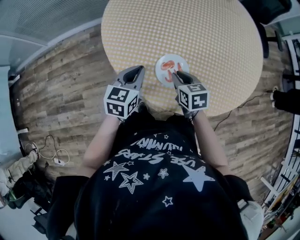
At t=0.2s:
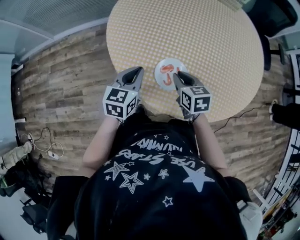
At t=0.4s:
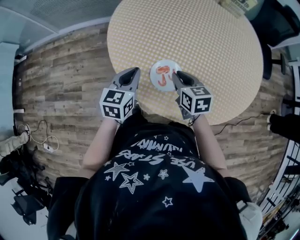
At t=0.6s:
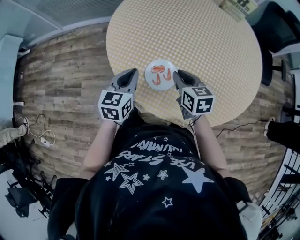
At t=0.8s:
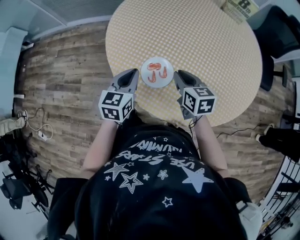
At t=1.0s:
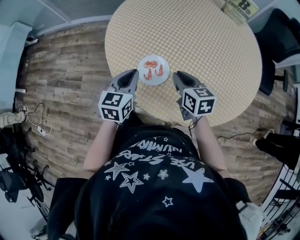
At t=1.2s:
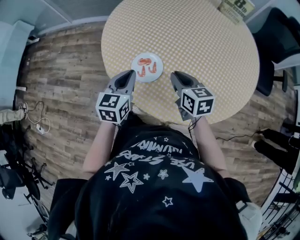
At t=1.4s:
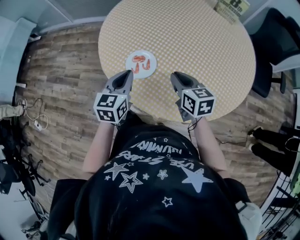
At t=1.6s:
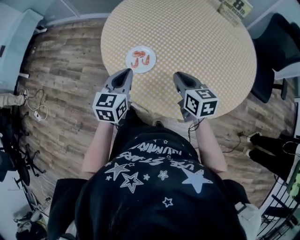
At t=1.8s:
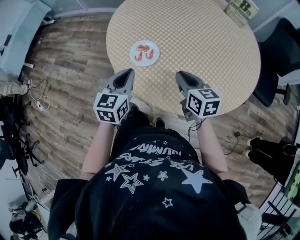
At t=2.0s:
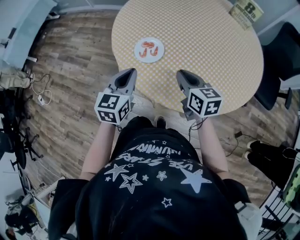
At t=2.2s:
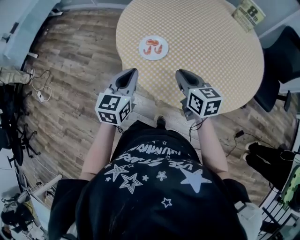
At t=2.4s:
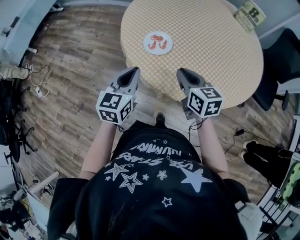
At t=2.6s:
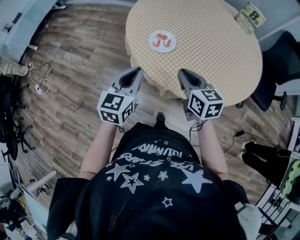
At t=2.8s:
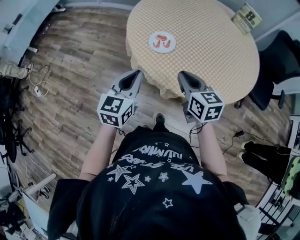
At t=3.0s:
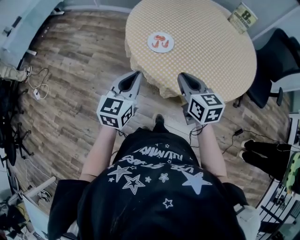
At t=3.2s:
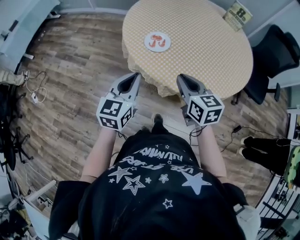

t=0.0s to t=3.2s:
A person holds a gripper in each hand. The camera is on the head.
t=0.0s to t=1.6s: The left gripper moves some 20 cm, and turns by about 30 degrees, while the right gripper moves roughly 20 cm, and rotates approximately 30 degrees.
t=1.6s to t=3.2s: The two grippers go about 15 cm backward and to the left.

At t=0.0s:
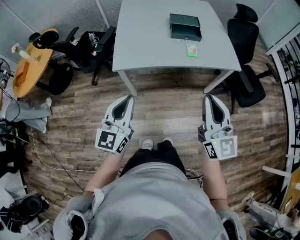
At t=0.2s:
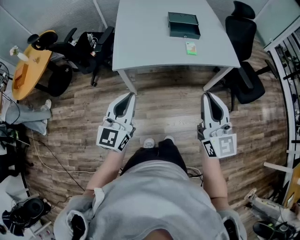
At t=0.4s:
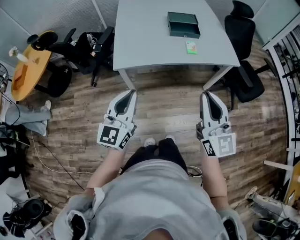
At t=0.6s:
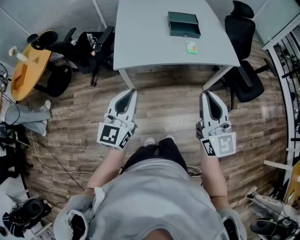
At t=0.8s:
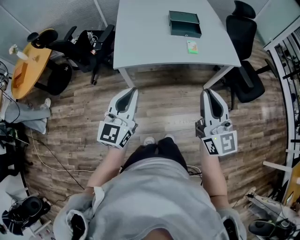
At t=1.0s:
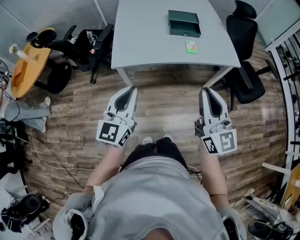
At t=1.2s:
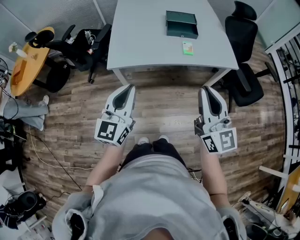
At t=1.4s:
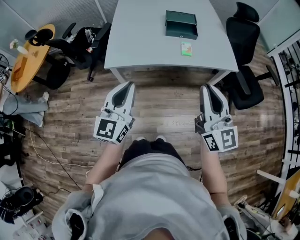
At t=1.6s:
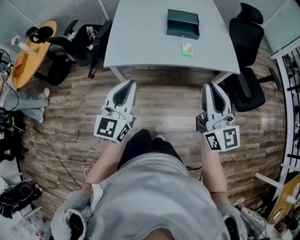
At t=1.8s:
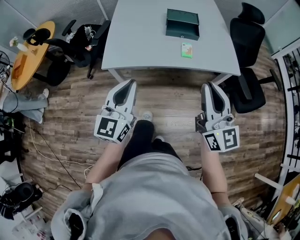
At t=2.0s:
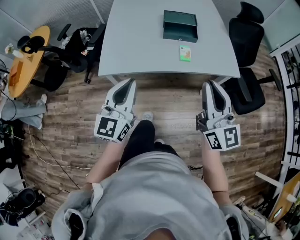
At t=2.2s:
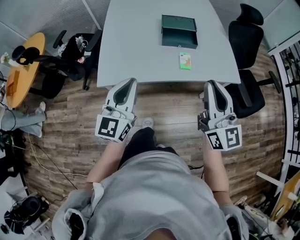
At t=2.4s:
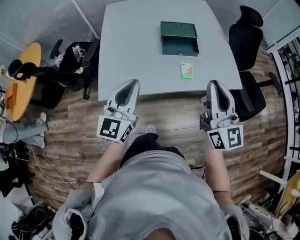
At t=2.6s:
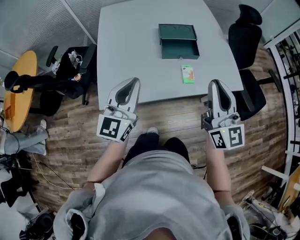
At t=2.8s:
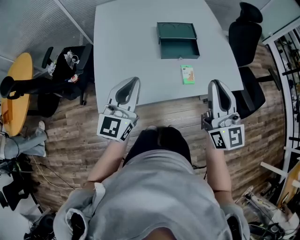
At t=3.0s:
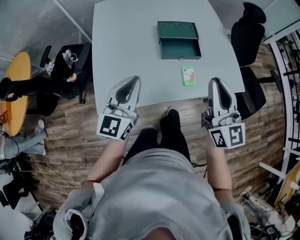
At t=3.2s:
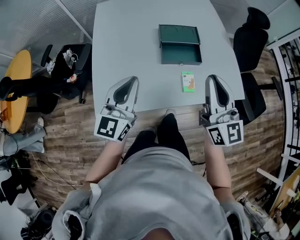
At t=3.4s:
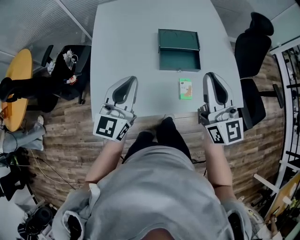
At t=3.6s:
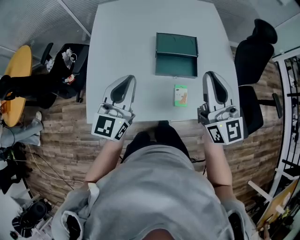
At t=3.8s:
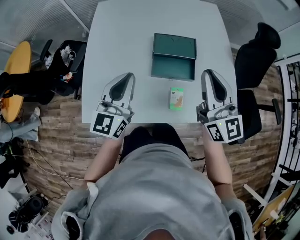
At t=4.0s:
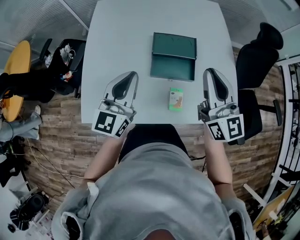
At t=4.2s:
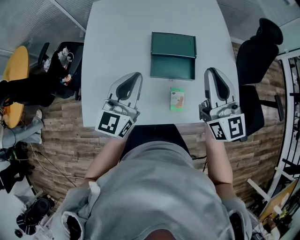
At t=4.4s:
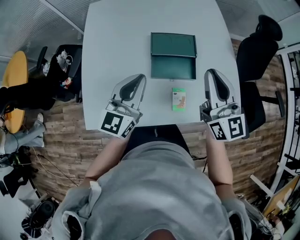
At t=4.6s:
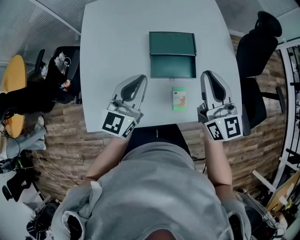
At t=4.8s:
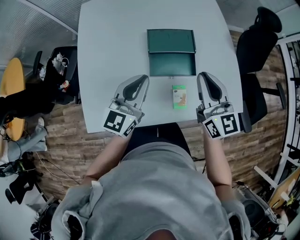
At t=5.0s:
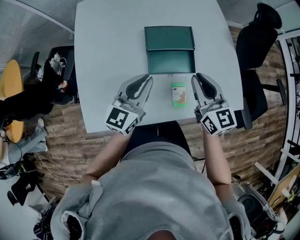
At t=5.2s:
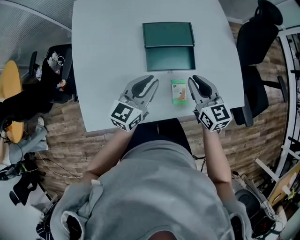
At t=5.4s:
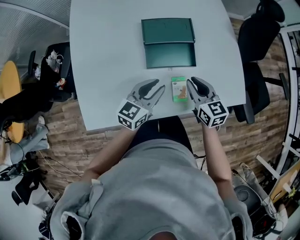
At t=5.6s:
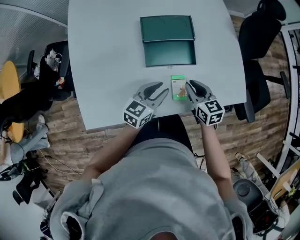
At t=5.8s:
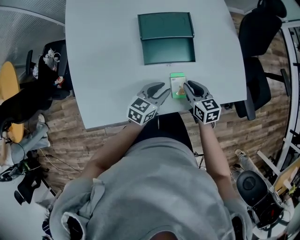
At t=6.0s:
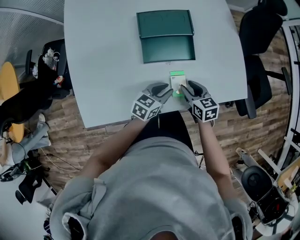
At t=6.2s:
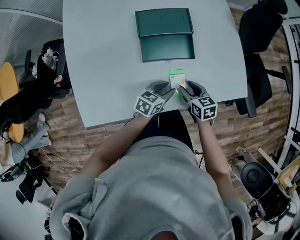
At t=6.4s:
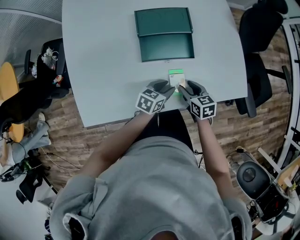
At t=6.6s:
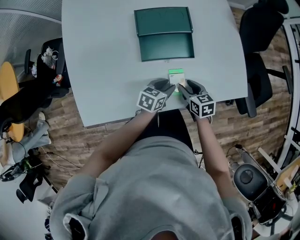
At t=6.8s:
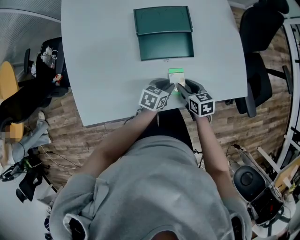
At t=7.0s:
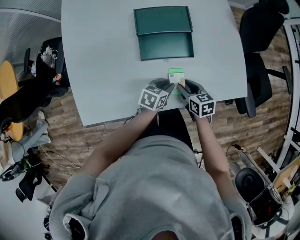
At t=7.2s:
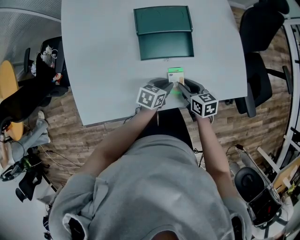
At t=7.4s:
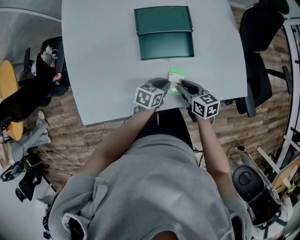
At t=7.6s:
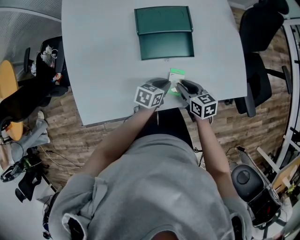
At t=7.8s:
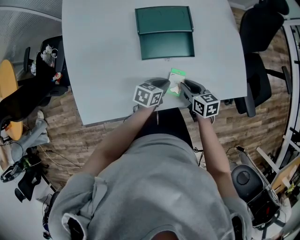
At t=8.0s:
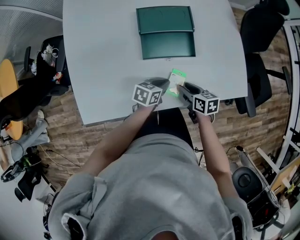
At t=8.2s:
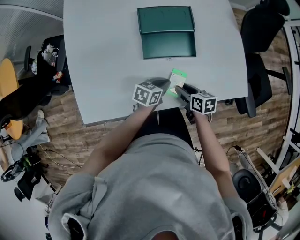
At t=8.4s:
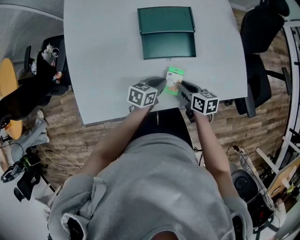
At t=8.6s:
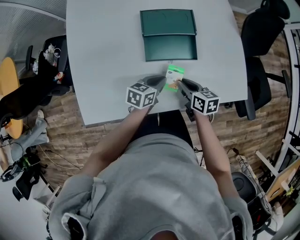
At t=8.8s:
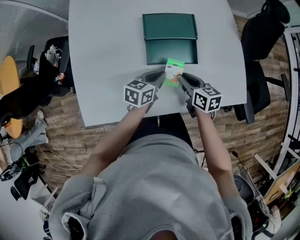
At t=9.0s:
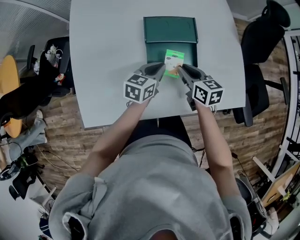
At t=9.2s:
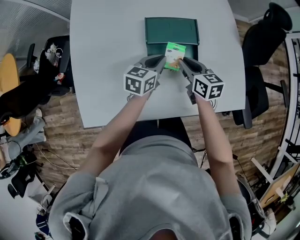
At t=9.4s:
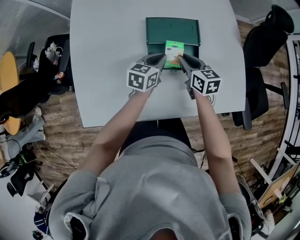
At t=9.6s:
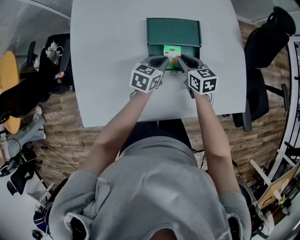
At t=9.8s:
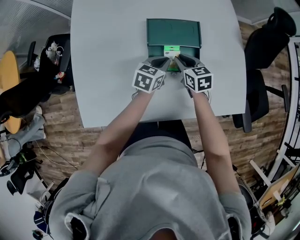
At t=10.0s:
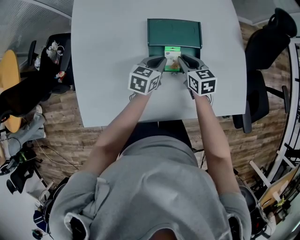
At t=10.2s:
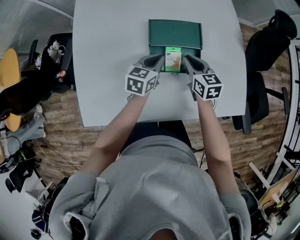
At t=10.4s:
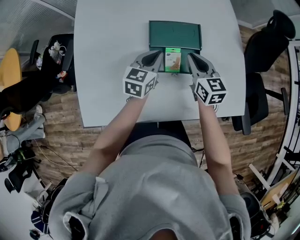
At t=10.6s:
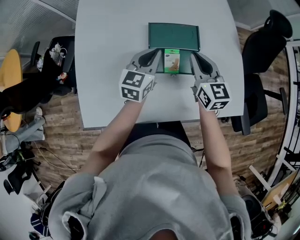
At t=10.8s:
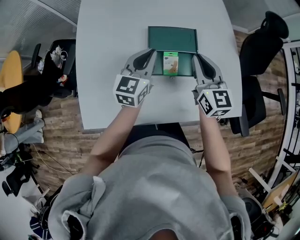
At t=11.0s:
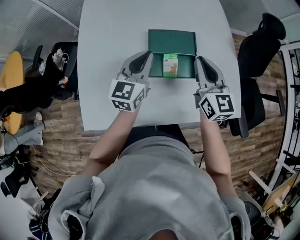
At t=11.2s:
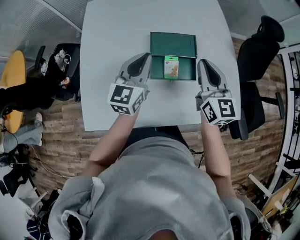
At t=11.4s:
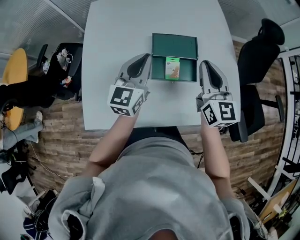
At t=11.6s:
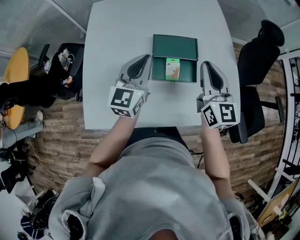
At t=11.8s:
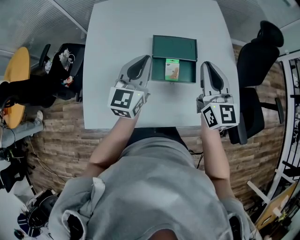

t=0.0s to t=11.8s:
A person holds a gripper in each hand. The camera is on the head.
t=0.0s to t=1.4s: Both grippers move to the right, approximately 5 cm.
t=1.4s to t=3.0s: Both grippers travel together forward, approximately 40 cm.
t=3.0s to t=4.4s: The right gripper shifts roughly 25 cm forward. The left gripper heads forward and to the right, covering about 20 cm.
t=4.4s to t=6.0s: The right gripper heads downward, covering approximately 35 cm, tilts its fingers some 50 degrees downward, and opens its fingers, while the left gripper goes about 30 cm downward and to the right, changes its angle by some 50 degrees, and opens.
t=6.0s to t=7.4s: The grippers move only a little.
t=7.4s to t=8.8s: The left gripper travels upward, forward and to the left by about 10 cm; the right gripper heads forward, covering roughly 5 cm.
t=8.8s to t=10.4s: Both grippers travel together forward and upward, roughly 15 cm. The right gripper changes its angle by about 30 degrees, while the left gripper swivels approximately 20 degrees.
t=10.4s to t=11.8s: Both grippers travel together upward and backward, roughly 20 cm. The left gripper swivels roughly 30 degrees, while the right gripper swivels approximately 30 degrees.

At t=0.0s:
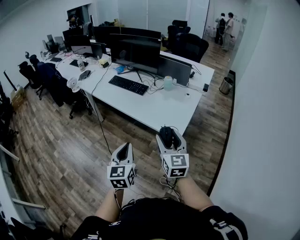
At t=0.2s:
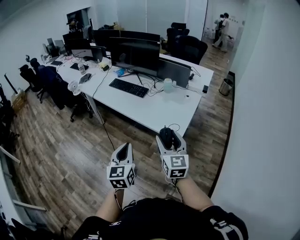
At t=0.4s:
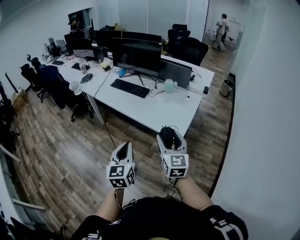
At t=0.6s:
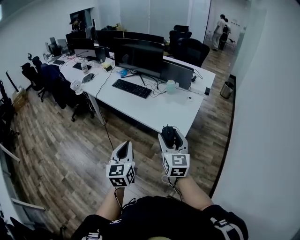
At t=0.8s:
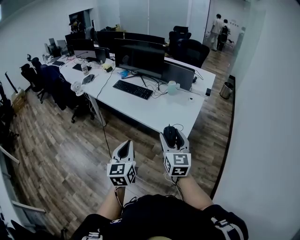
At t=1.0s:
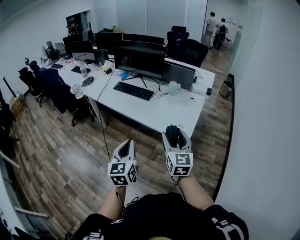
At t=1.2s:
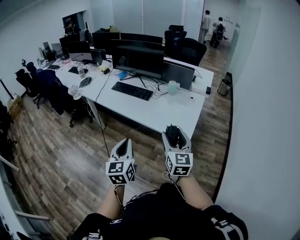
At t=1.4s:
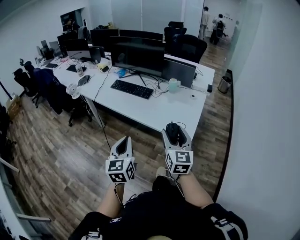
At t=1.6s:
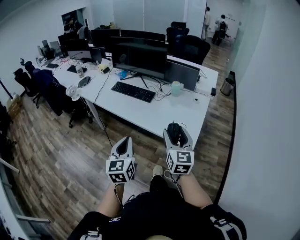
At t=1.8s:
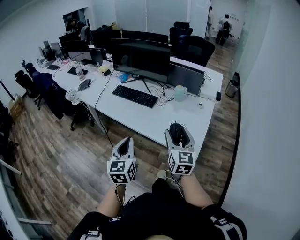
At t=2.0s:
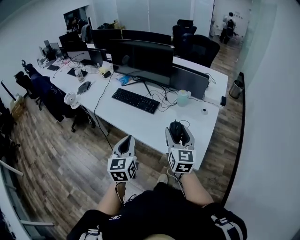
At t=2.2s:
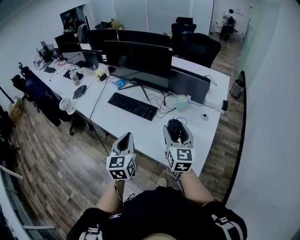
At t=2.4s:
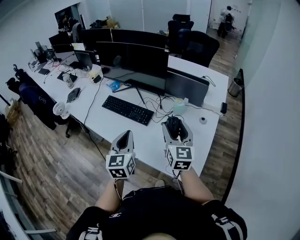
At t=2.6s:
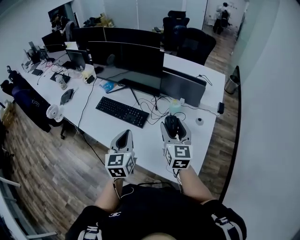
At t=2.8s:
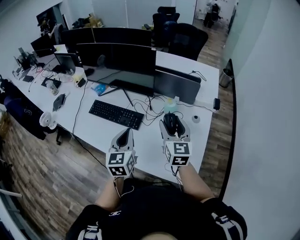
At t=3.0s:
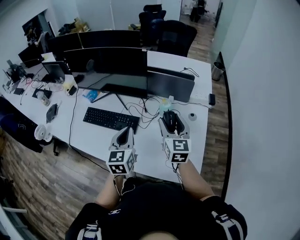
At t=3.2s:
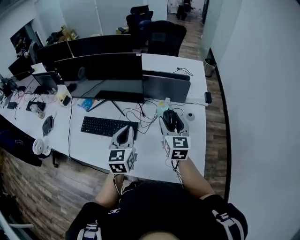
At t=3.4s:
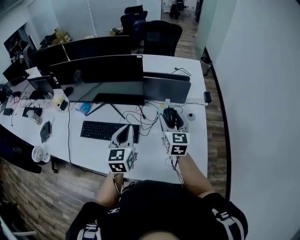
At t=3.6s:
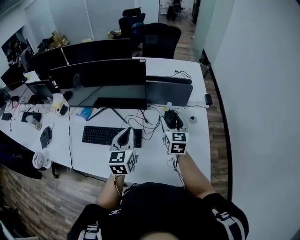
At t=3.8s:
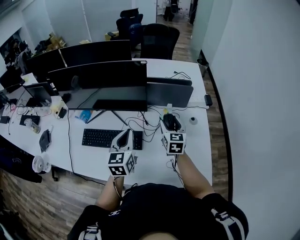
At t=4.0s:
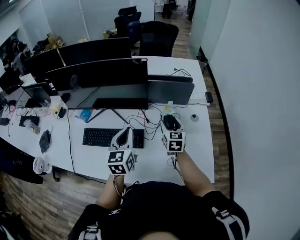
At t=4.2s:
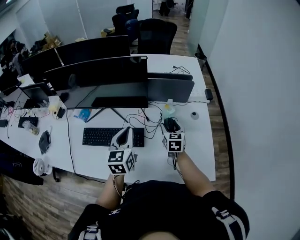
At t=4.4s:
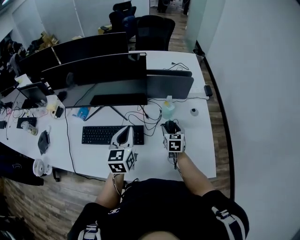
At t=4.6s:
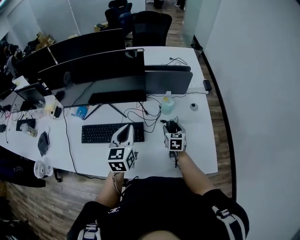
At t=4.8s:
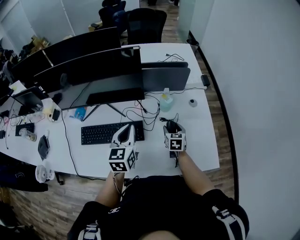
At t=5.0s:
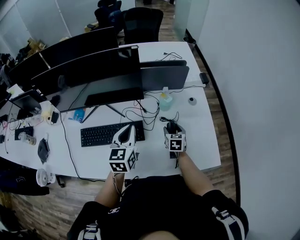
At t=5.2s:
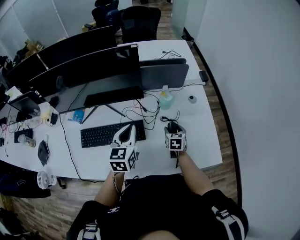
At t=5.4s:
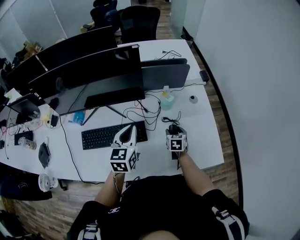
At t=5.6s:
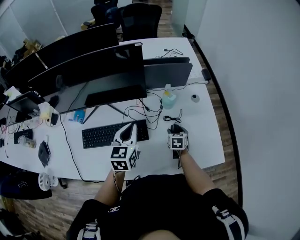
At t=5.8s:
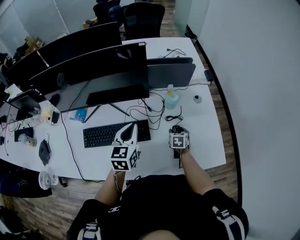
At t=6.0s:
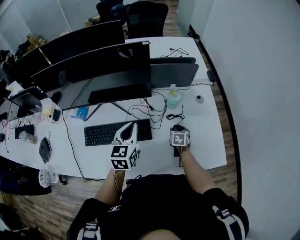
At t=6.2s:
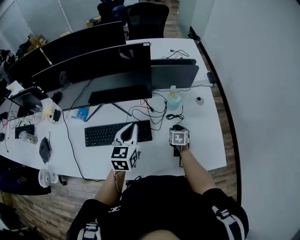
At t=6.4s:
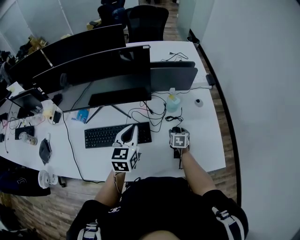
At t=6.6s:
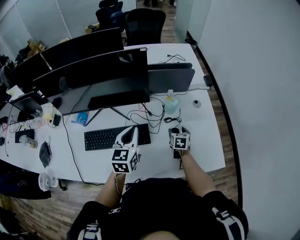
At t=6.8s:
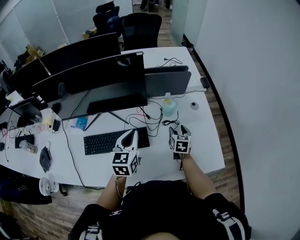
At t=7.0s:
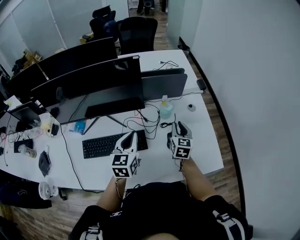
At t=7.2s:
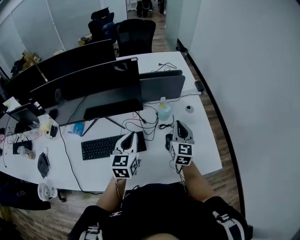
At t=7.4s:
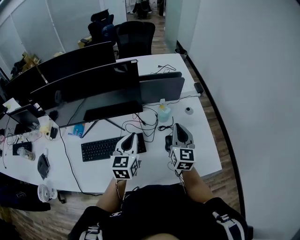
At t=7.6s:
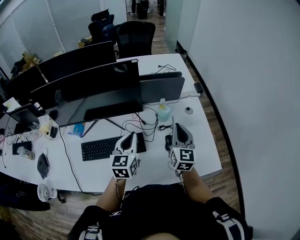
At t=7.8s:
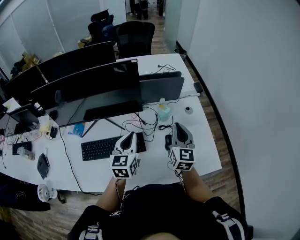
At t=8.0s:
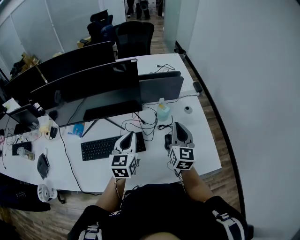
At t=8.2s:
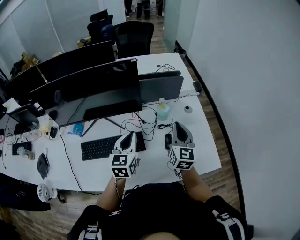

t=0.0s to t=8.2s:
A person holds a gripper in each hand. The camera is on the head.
t=0.0s to t=1.6s: Both grippers move forward and to the left, about 15 cm.
t=1.6s to t=3.2s: The two grippers travel together, forward, some 50 cm. The left gripper swivels approximately 20 degrees.
t=3.2s to t=5.0s: The right gripper travels downward by about 25 cm, and points its fingers about 30 degrees further downward, while the left gripper goes some 10 cm to the left, forward and downward.
t=6.6s to t=8.2s: The right gripper goes approximately 25 cm upward, points its fingers some 40 degrees further upward, and closes up.
